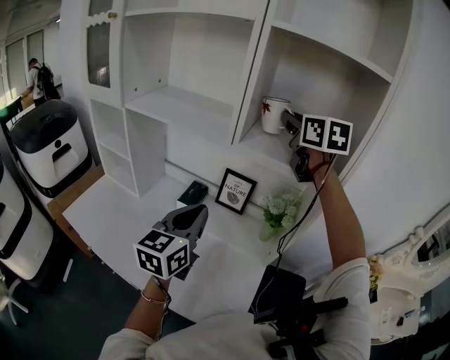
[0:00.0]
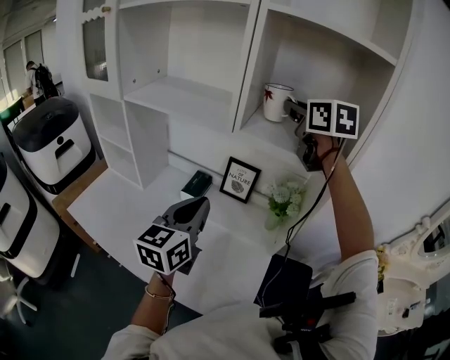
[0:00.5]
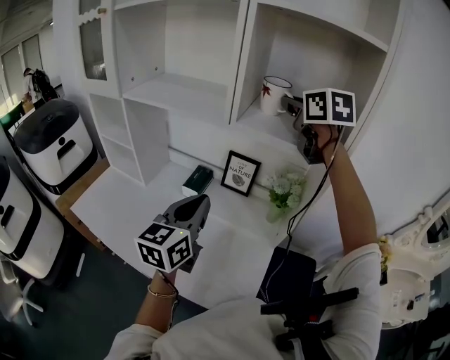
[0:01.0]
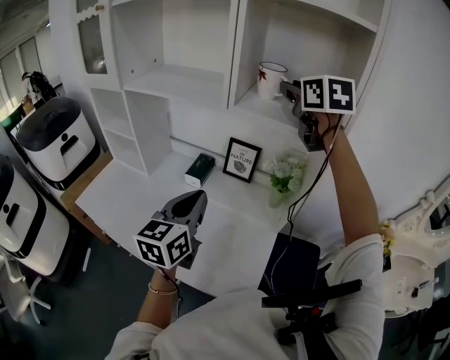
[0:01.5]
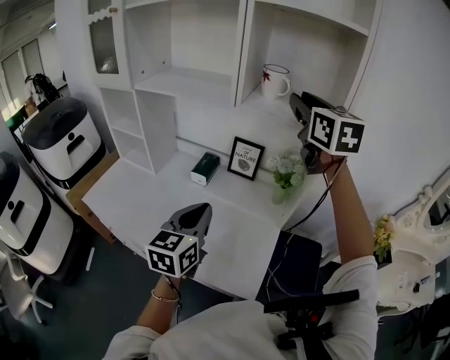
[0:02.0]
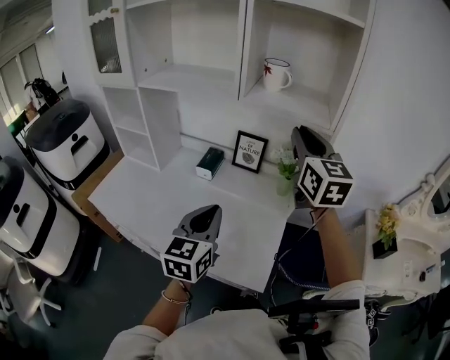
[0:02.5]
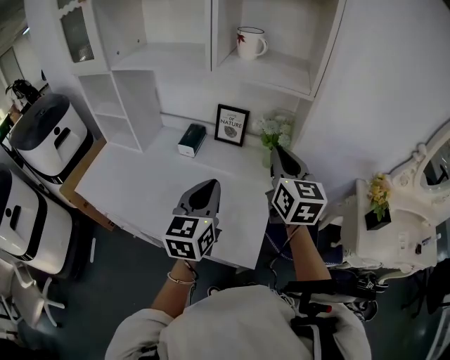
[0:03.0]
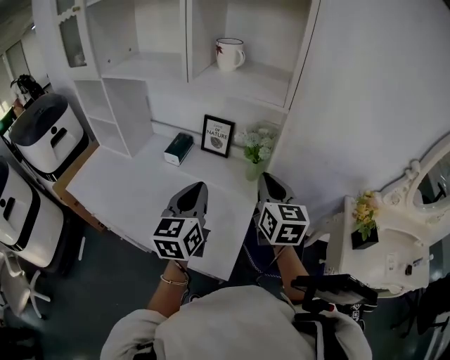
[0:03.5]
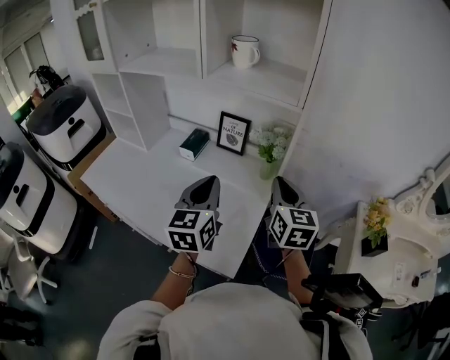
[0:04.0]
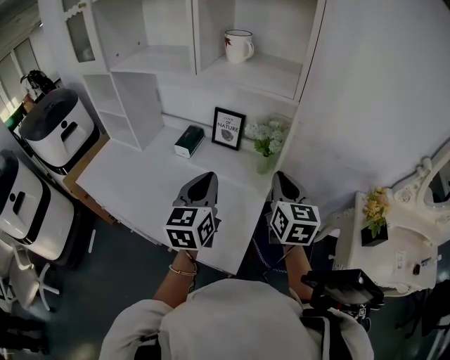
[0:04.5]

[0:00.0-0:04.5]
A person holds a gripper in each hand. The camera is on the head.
0:00.0 to 0:02.0: Both grippers travel together backward, roughly 10 cm.
0:02.0 to 0:04.5: The left gripper moves to the right, roughly 10 cm; the right gripper shifts approximately 30 cm downward, backward and to the right, and closes.

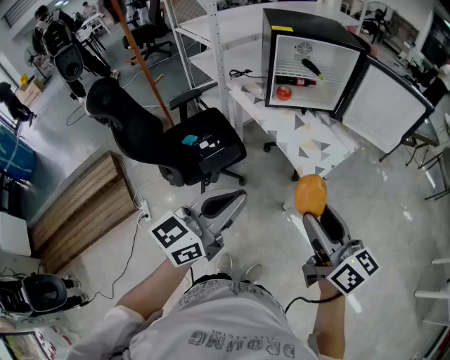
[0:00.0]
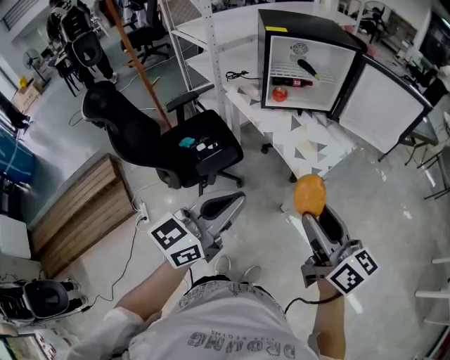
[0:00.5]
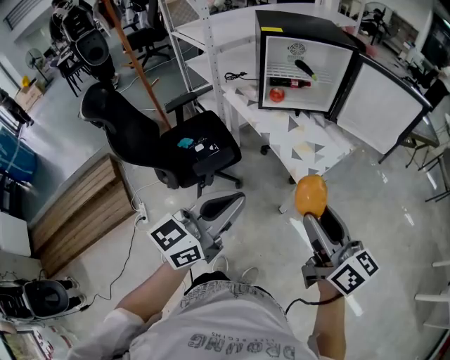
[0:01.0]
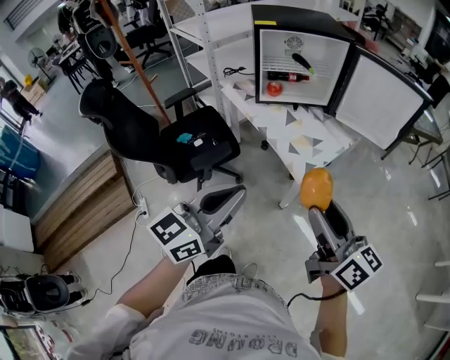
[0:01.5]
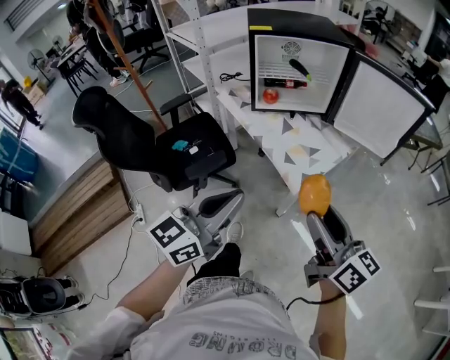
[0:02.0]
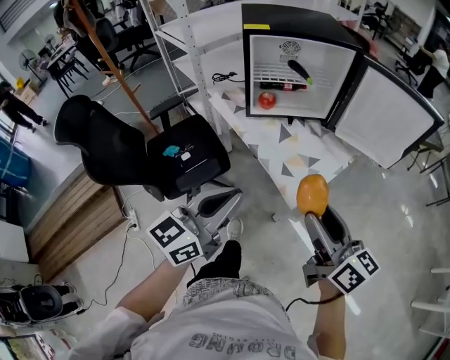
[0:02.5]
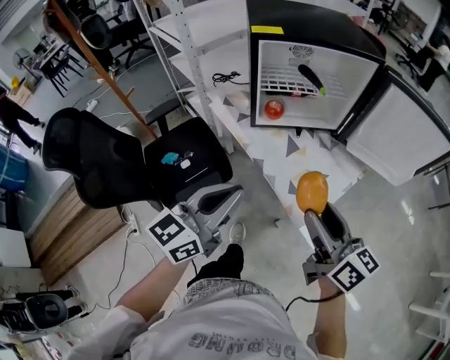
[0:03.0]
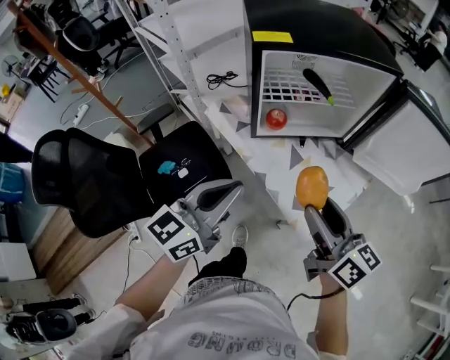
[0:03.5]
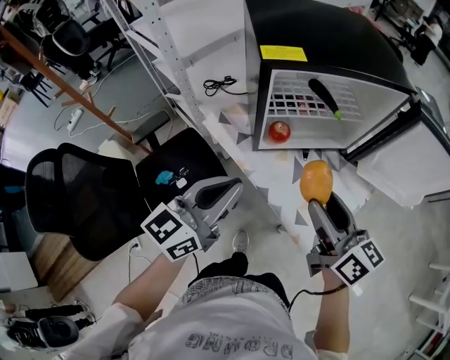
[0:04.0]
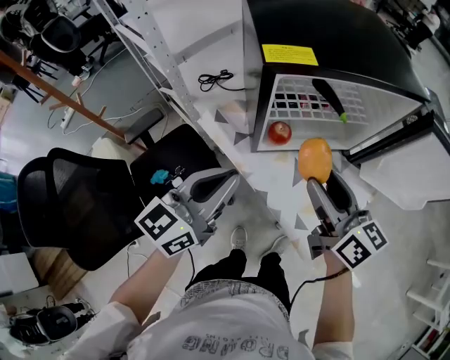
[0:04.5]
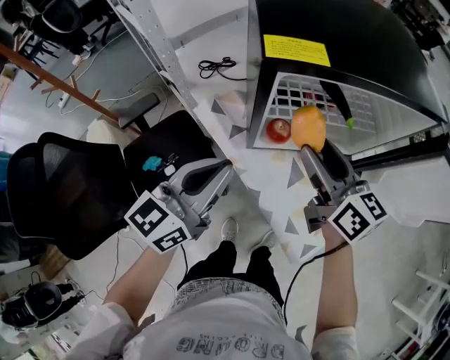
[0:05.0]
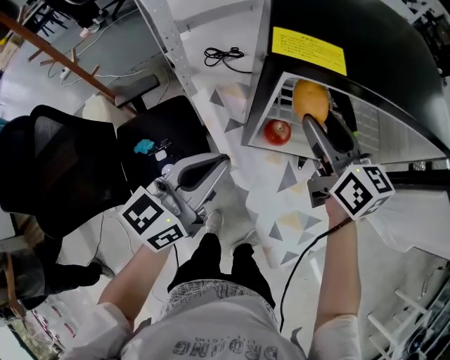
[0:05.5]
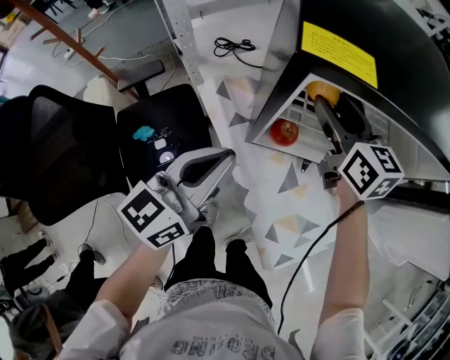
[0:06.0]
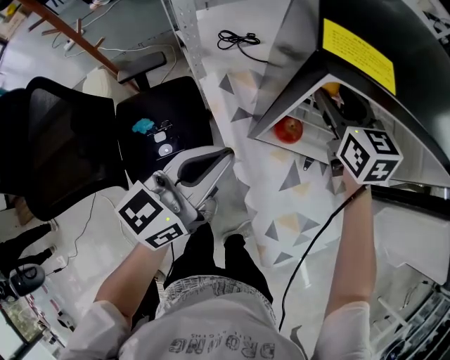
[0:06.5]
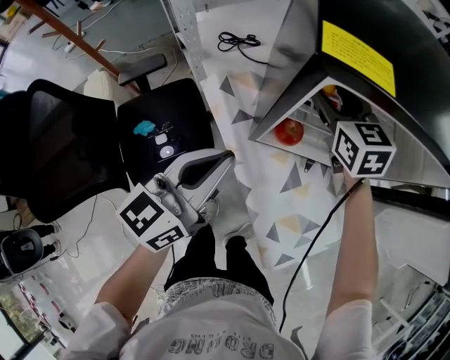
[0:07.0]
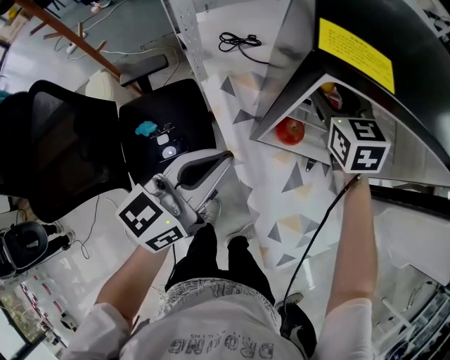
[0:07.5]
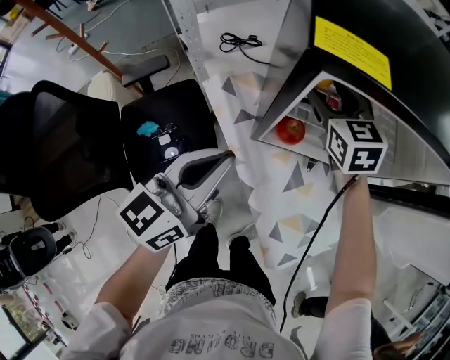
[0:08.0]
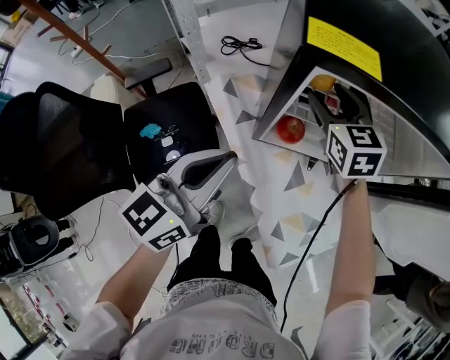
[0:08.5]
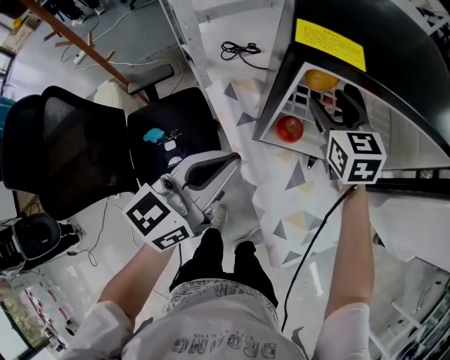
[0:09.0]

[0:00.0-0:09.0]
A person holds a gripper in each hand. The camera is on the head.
0:00.0 to 0:02.0: The grippers both shift to the right and forward by approximately 10 cm.
0:02.0 to 0:04.5: The pair of grippers is taken forward, roughly 40 cm.
0:04.5 to 0:07.0: The left gripper travels downward and forward by some 5 cm. The right gripper travels forward by roughly 25 cm, and swivels roughly 40 degrees.
0:07.0 to 0:09.0: The grippers make only small movements.

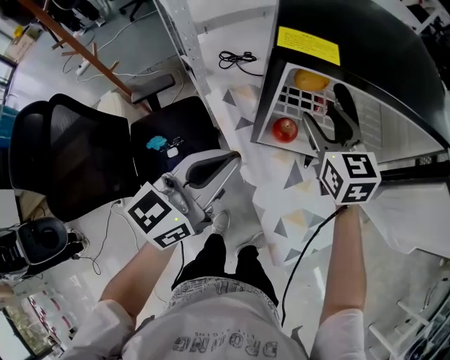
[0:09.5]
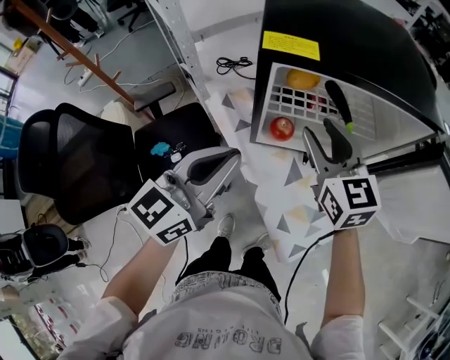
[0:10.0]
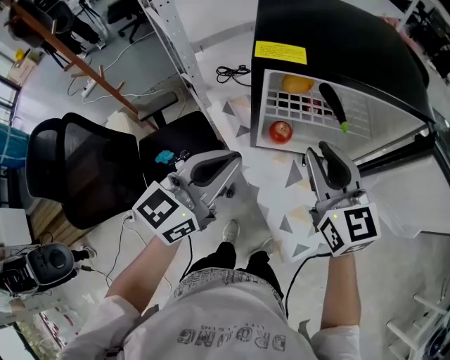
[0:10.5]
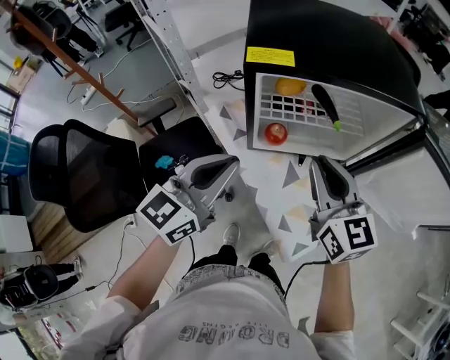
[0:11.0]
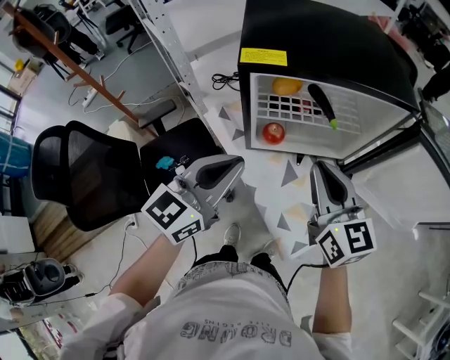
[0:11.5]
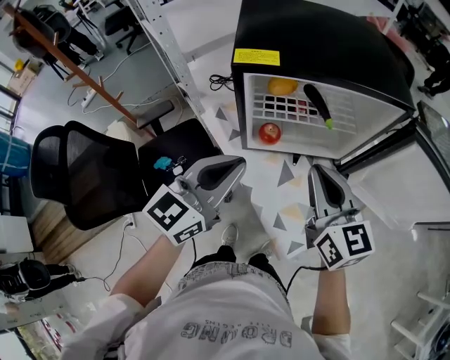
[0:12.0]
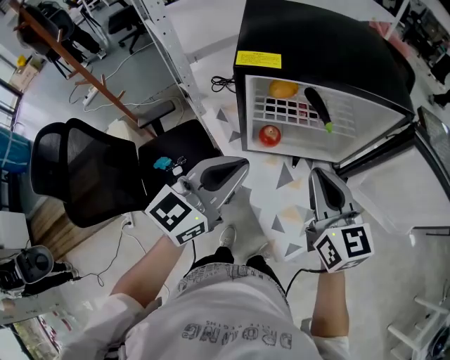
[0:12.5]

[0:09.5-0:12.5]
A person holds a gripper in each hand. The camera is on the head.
0:09.5 to 0:11.0: The right gripper moves backward and upward, some 15 cm, and closes its fingers.
0:11.0 to 0:12.5: The grippers make only small movements.

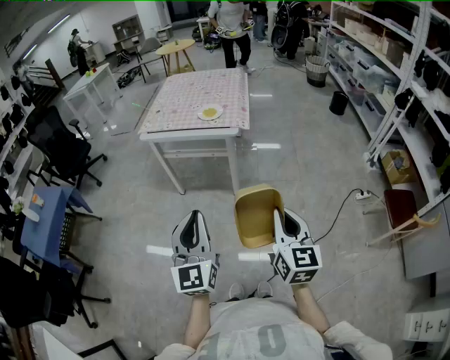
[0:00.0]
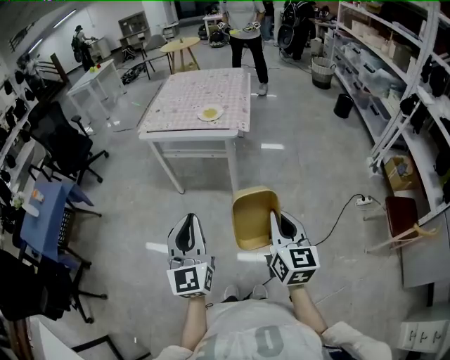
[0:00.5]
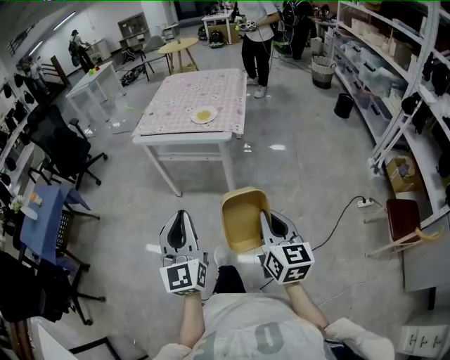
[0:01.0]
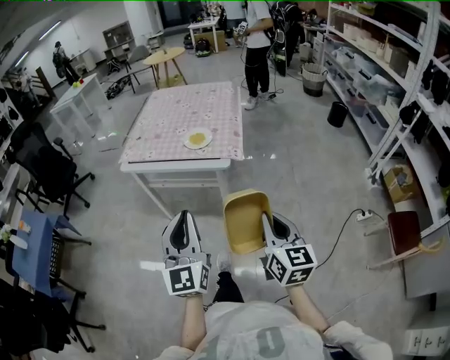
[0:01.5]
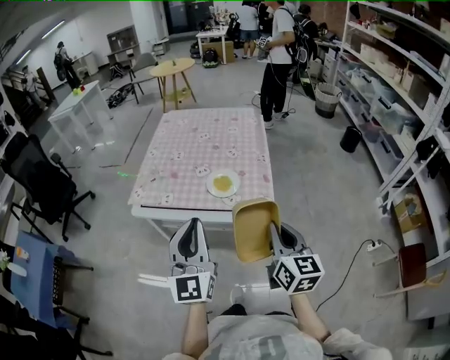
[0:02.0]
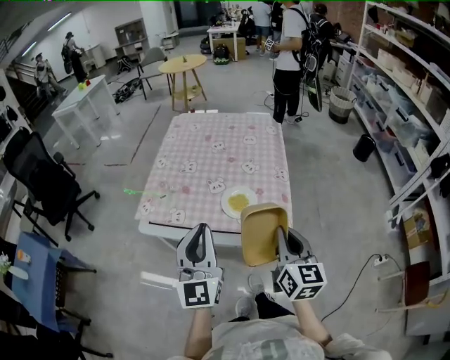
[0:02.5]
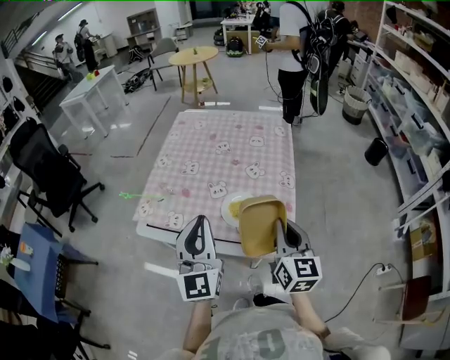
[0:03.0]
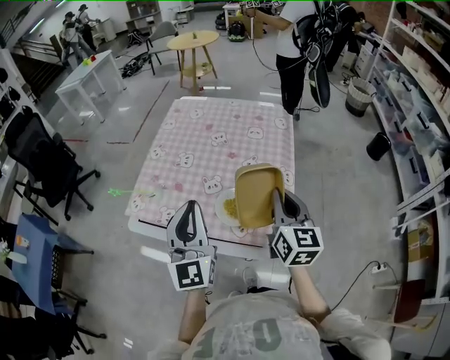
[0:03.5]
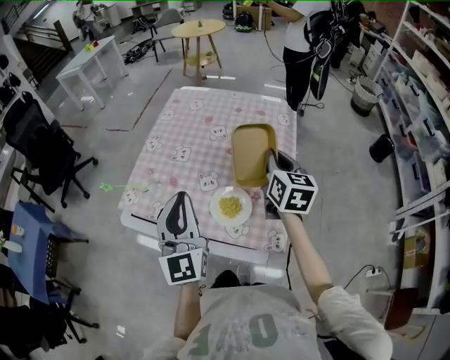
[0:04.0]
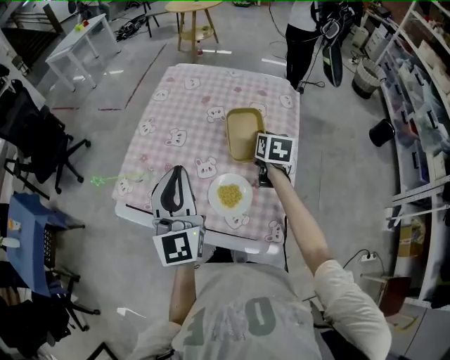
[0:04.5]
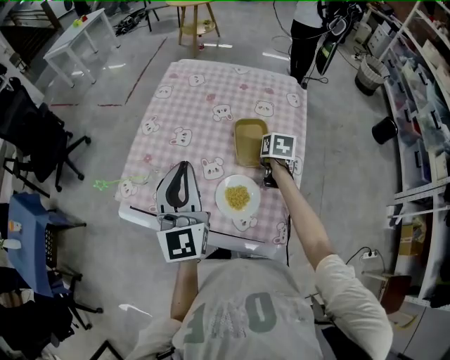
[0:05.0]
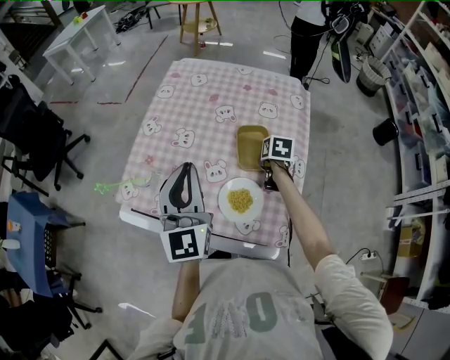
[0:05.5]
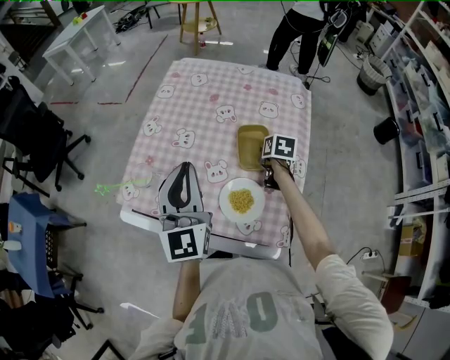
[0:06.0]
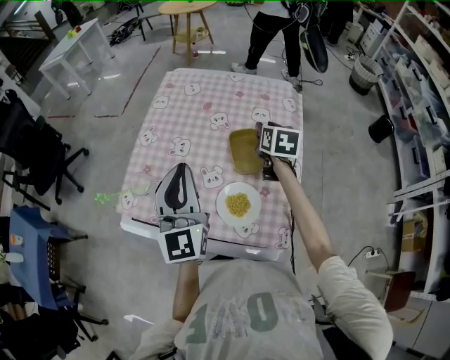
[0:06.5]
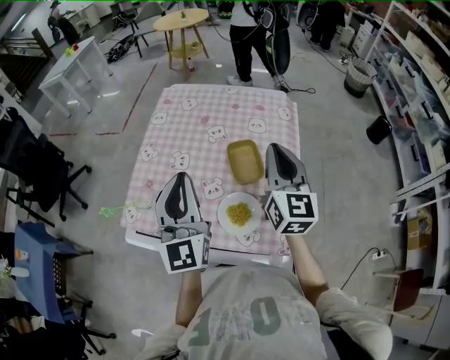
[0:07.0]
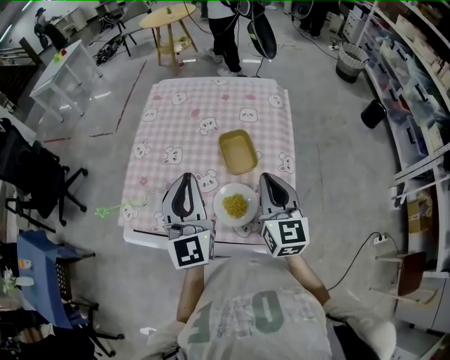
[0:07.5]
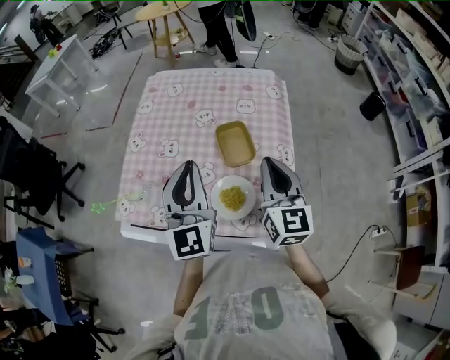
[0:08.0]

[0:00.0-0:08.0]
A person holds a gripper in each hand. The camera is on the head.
0:00.0 to 0:02.0: The pair of grippers is taken forward, approximately 40 cm.
0:02.0 to 0:04.0: The left gripper shifts about 25 cm forward, while the right gripper is displaced forward by some 40 cm.
0:04.0 to 0:06.0: The right gripper heads downward and forward, covering approximately 25 cm, tips its fingers downward by roughly 40 degrees, and opens up. Meanwhile the left gripper heads forward, covering some 10 cm.
0:06.0 to 0:08.0: The left gripper goes approximately 5 cm to the right; the right gripper goes about 30 cm upward and backward, points its fingers some 50 degrees further upward, and closes its fingers.

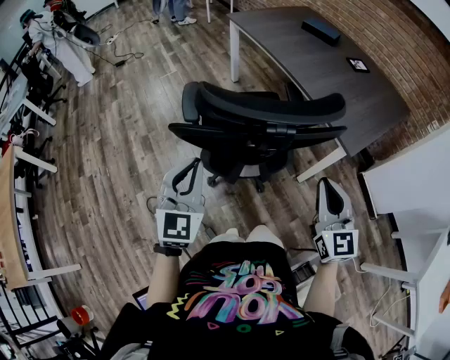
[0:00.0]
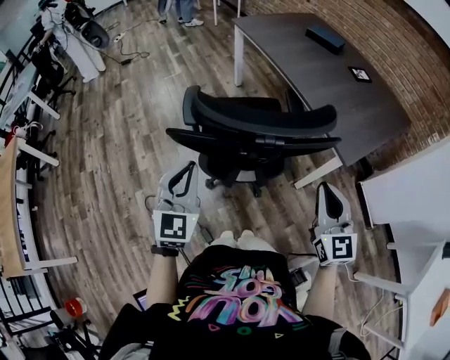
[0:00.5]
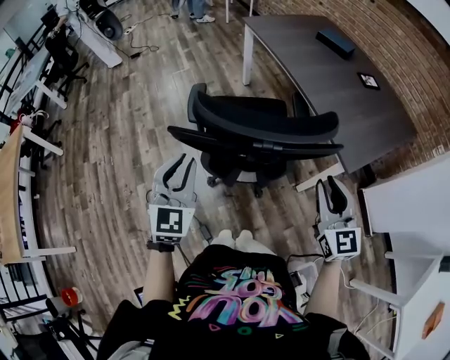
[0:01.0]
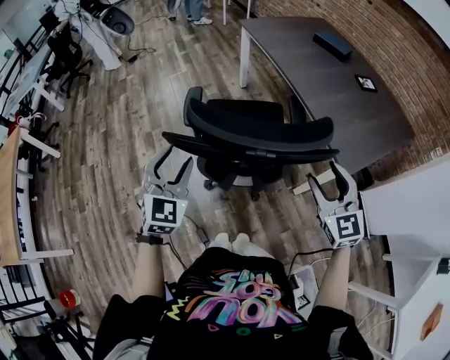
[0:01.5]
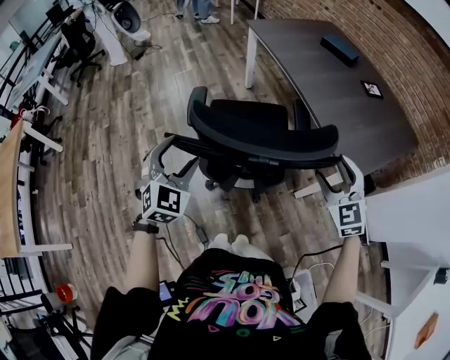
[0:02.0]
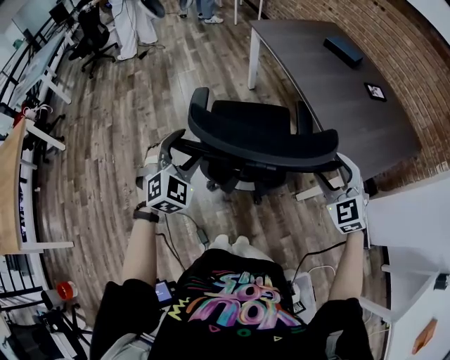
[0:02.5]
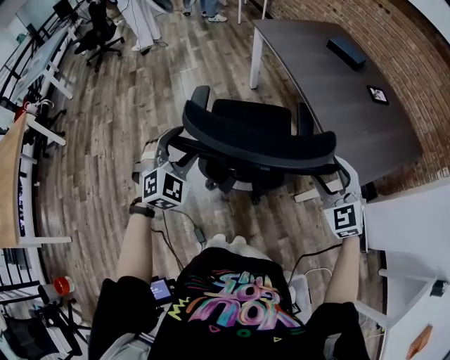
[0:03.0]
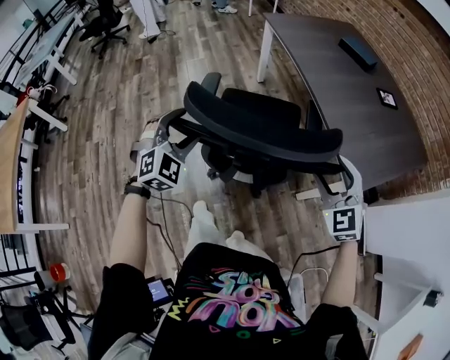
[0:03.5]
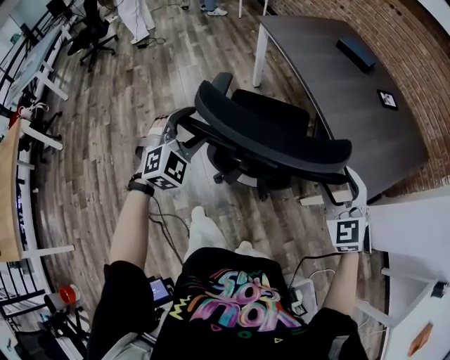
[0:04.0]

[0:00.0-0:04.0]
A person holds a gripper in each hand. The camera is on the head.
0:00.0 to 0:02.0: The left gripper travels forward by roughly 5 cm, rotates some 20 degrees, and opens up, while the right gripper shifts about 15 cm forward and to the right, changes its angle by about 30 degrees, and opens.
0:02.0 to 0:04.0: The left gripper is displaced forward by some 15 cm, and changes its angle by approximately 20 degrees. The right gripper travels forward by roughly 5 cm.
